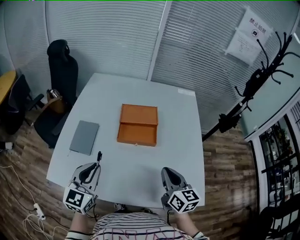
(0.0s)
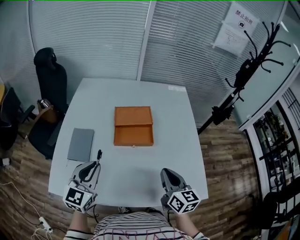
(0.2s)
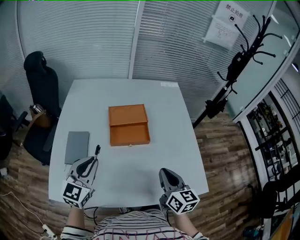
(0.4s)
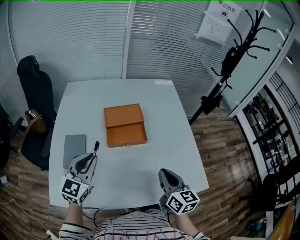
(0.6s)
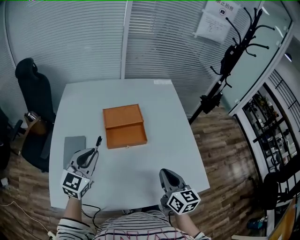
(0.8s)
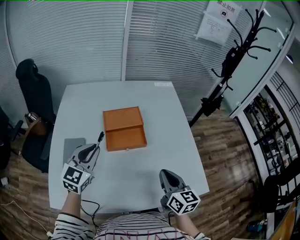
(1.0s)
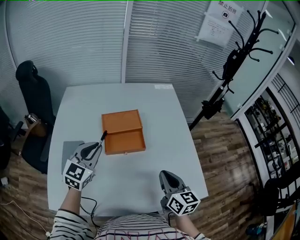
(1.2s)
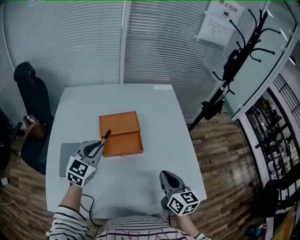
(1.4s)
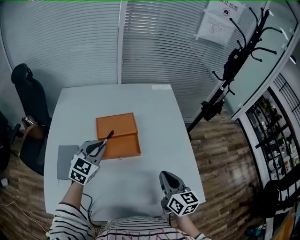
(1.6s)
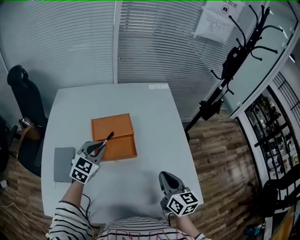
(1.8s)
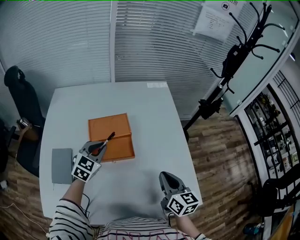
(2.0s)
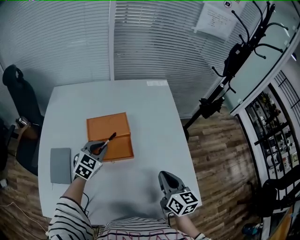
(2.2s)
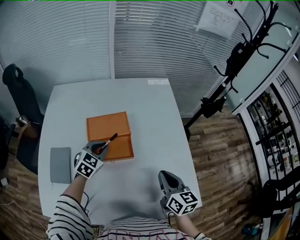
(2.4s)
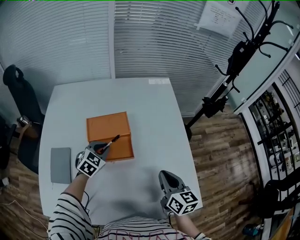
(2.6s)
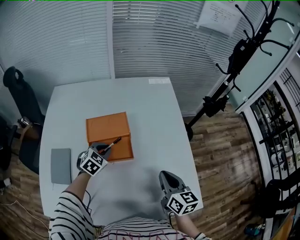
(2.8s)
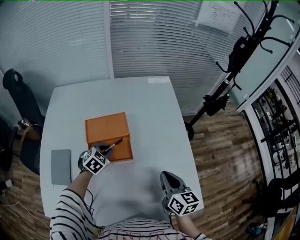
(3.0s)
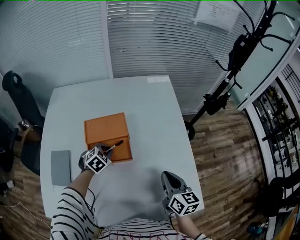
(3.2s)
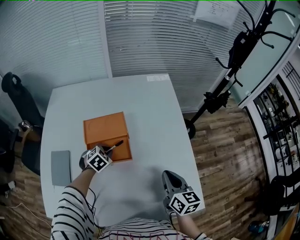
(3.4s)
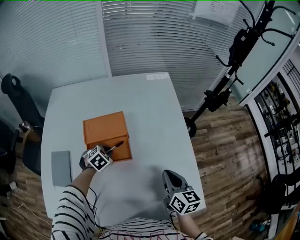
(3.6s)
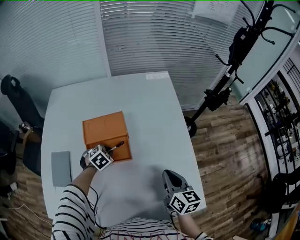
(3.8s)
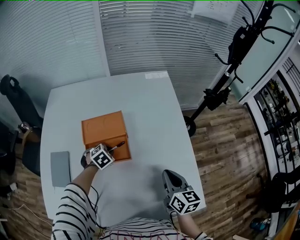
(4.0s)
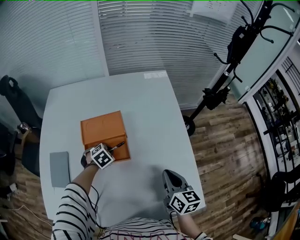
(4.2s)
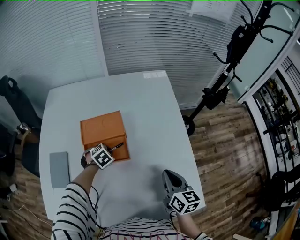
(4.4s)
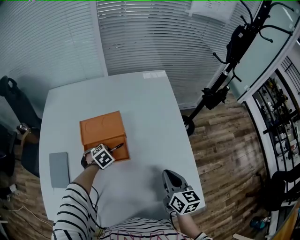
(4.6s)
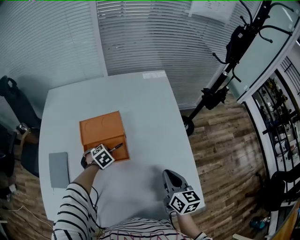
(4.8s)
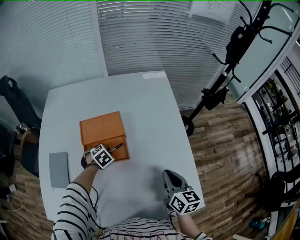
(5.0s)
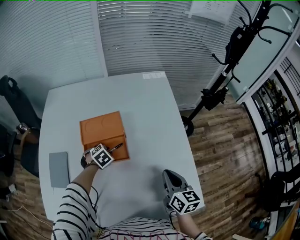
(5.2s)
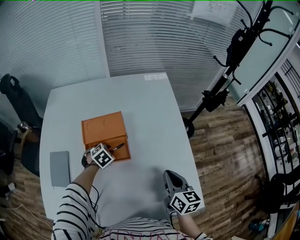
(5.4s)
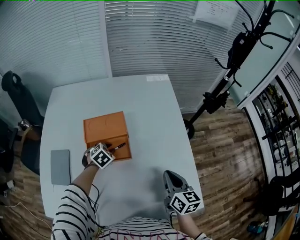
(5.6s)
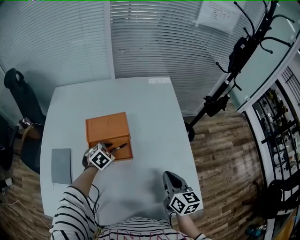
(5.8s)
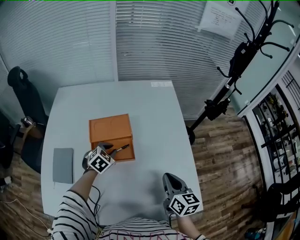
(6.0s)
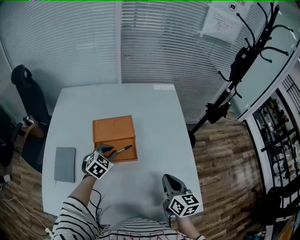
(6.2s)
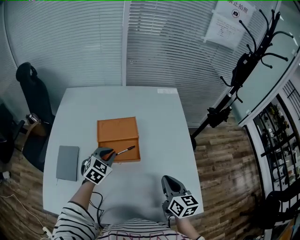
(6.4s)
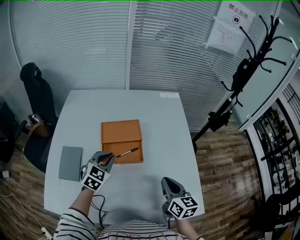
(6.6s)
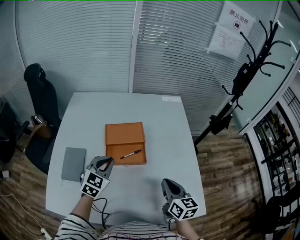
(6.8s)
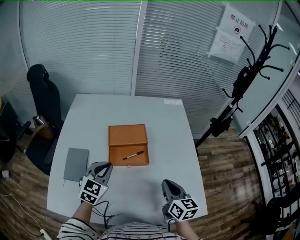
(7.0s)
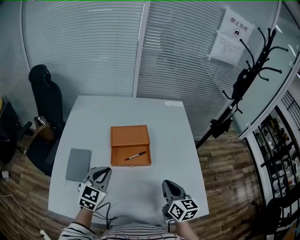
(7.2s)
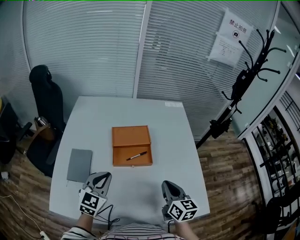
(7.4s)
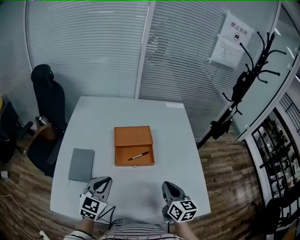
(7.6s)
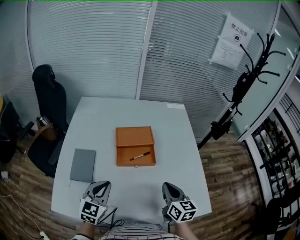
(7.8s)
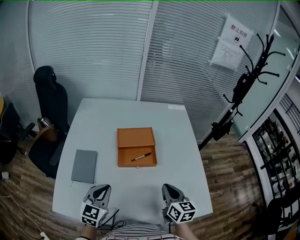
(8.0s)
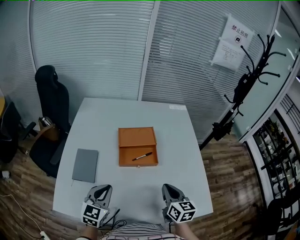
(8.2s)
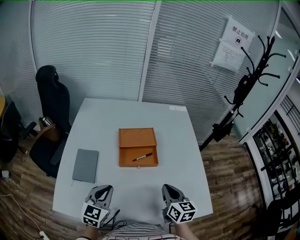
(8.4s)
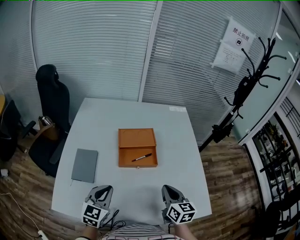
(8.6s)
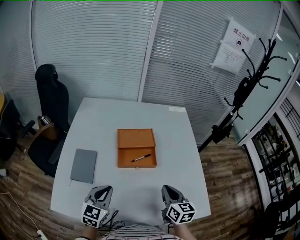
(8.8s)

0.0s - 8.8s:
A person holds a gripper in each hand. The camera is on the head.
0.0s - 1.4s: The left gripper heads forward, covering roughly 20 cm, and rotates approximately 20 degrees.
1.4s - 3.0s: The left gripper goes approximately 20 cm downward, forward and to the right, and angles its fingers downward, by roughly 30 degrees, while the right gripper goes roughly 10 cm forward and to the right.
3.0s - 4.4s: The left gripper is displaced downward by approximately 5 cm.
4.4s - 5.8s: The left gripper is displaced upward by some 5 cm.
5.8s - 7.4s: The right gripper shifts approximately 15 cm to the left and backward, while the left gripper is displaced backward, upward and to the left by about 30 cm, and tips its fingers upward by approximately 40 degrees.
7.4s - 8.8s: The left gripper moves backward, some 5 cm.

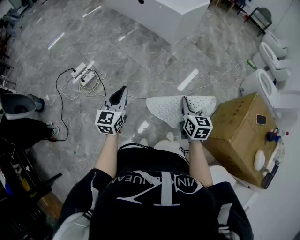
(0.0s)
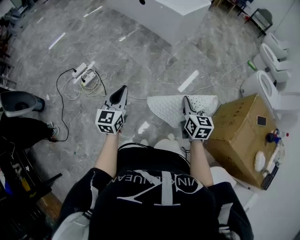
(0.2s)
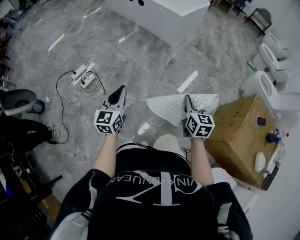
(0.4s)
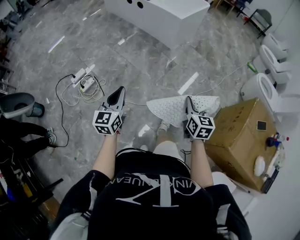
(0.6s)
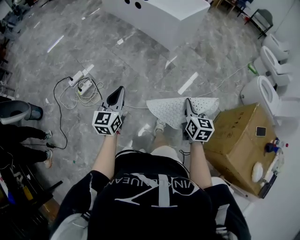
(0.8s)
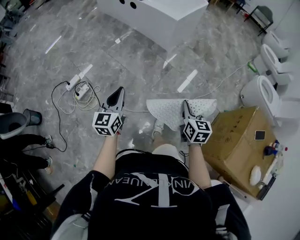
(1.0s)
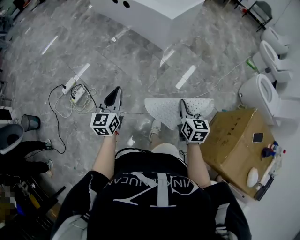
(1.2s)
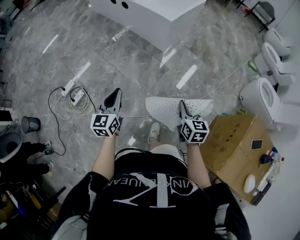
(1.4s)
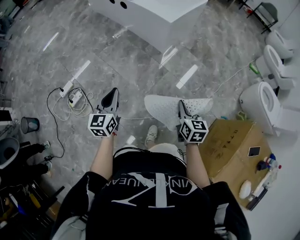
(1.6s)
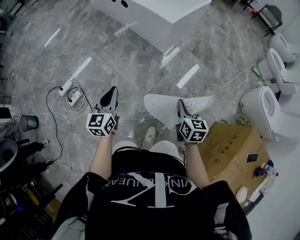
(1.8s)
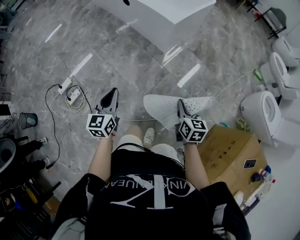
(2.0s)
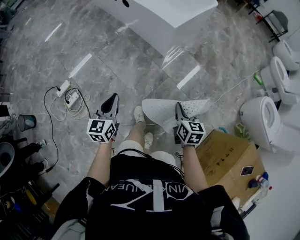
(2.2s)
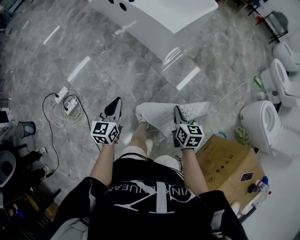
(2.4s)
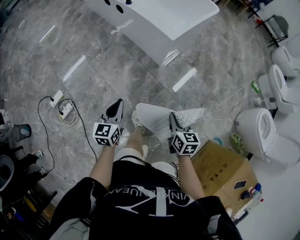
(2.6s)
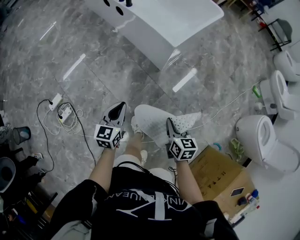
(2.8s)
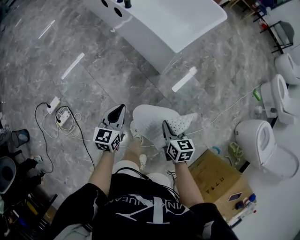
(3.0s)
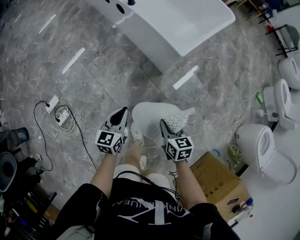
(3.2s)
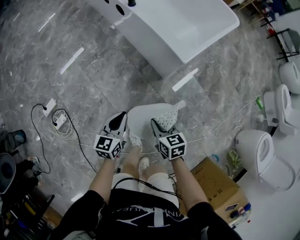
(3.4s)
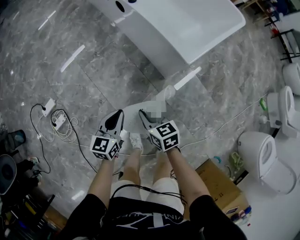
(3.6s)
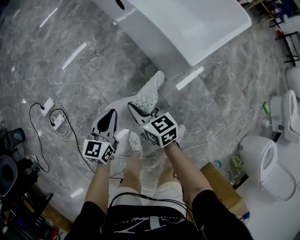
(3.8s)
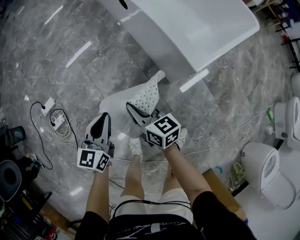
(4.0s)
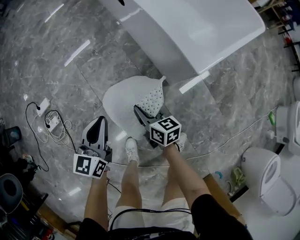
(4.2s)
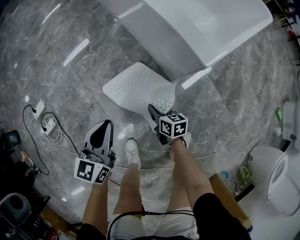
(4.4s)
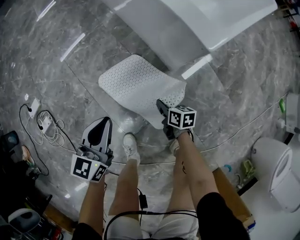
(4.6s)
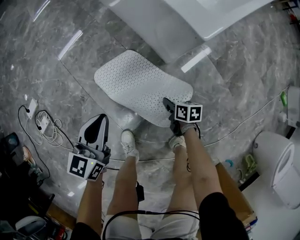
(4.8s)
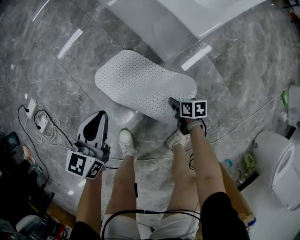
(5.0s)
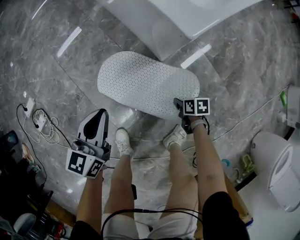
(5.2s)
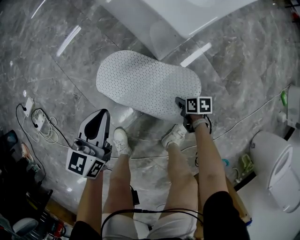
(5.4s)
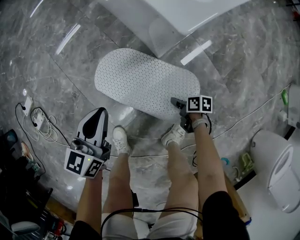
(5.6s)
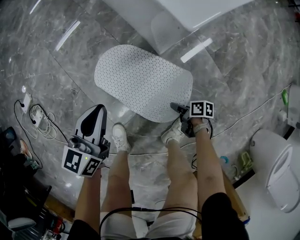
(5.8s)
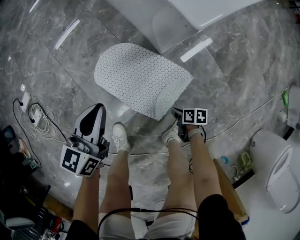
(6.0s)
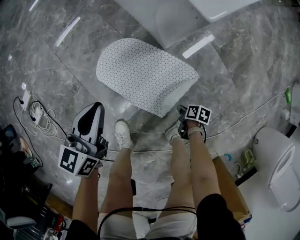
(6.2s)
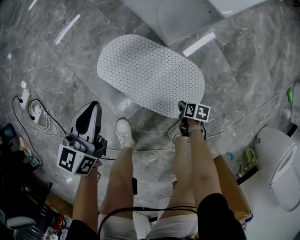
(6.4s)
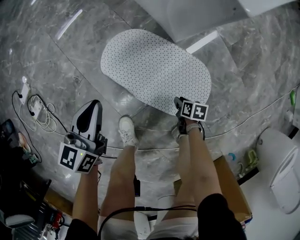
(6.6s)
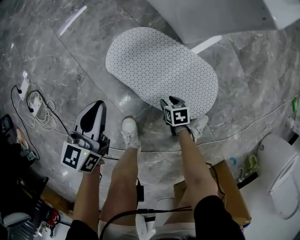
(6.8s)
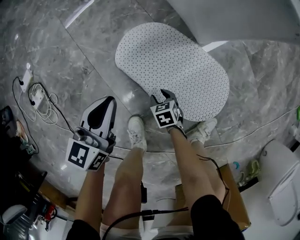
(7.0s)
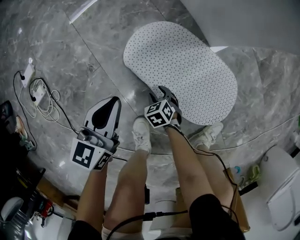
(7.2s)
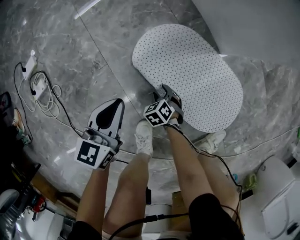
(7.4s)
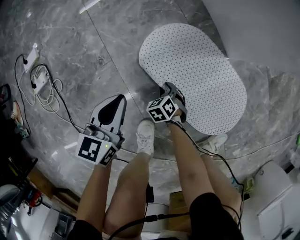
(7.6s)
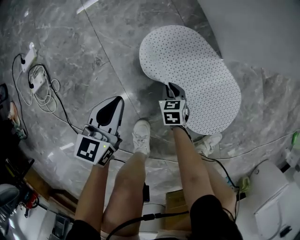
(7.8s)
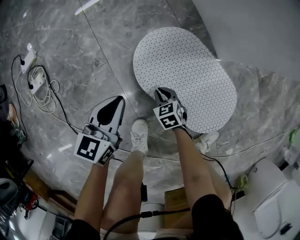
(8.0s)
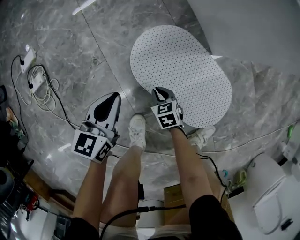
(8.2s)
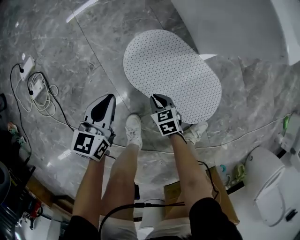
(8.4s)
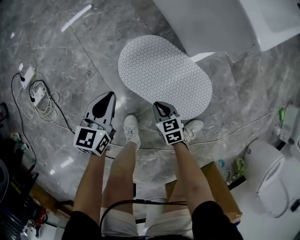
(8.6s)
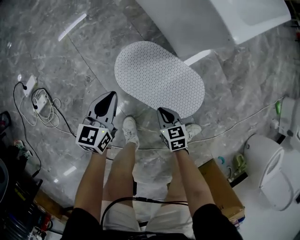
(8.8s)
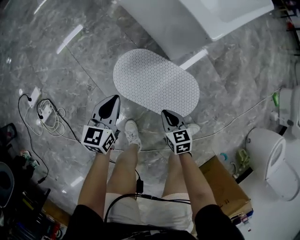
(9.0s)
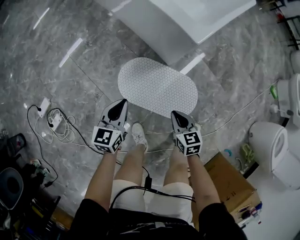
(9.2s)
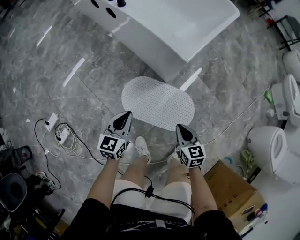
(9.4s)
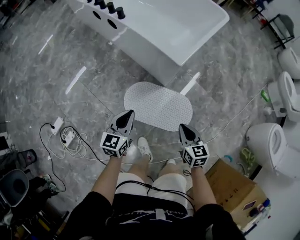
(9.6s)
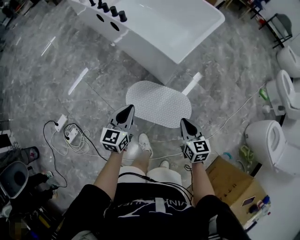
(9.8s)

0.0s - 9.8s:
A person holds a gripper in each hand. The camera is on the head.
0.0s - 1.4s: The two grippers go roughly 25 cm forward.
1.4s - 2.8s: The two grippers go about 30 cm forward.
2.8s - 4.2s: The left gripper moves some 25 cm, while the right gripper changes place by approximately 40 cm, and turns by roughly 30 degrees.
4.2s - 5.6s: The right gripper is displaced downward, to the right and backward by about 40 cm, and swivels some 50 degrees; the left gripper moves downward and to the right, approximately 20 cm.
5.6s - 7.0s: The right gripper is displaced to the left and downward by about 30 cm, rotates around the line of its fingers by about 50 degrees, counterclockwise from behind, and opens its fingers. The left gripper heads to the left and downward, covering some 20 cm.
7.0s - 8.4s: The left gripper moves to the left, roughly 5 cm. Meanwhile the right gripper goes some 10 cm upward, and closes its fingers.
8.4s - 9.8s: The two grippers go about 50 cm upward. The left gripper rotates some 30 degrees. The right gripper swivels approximately 50 degrees.

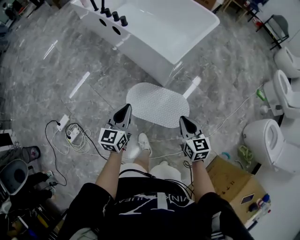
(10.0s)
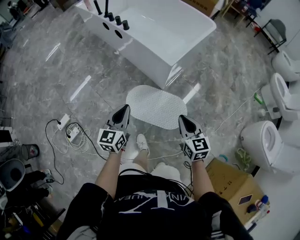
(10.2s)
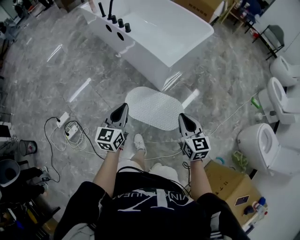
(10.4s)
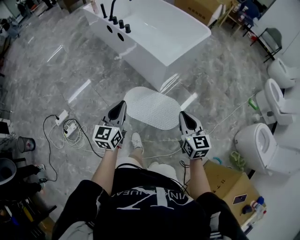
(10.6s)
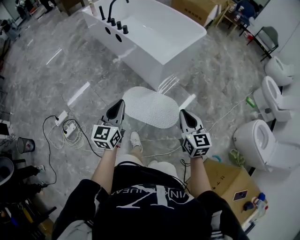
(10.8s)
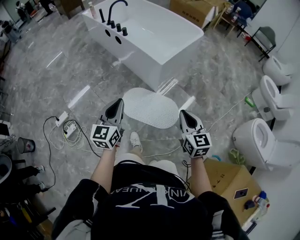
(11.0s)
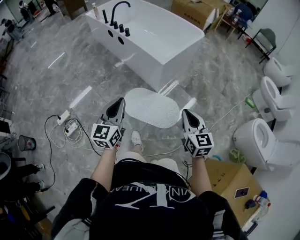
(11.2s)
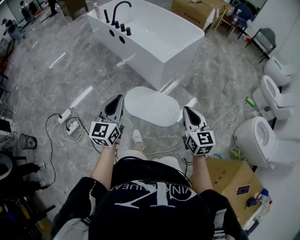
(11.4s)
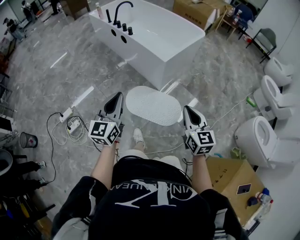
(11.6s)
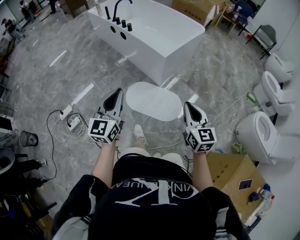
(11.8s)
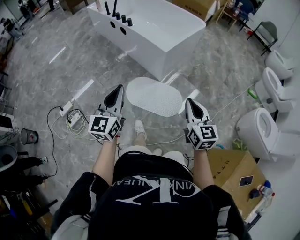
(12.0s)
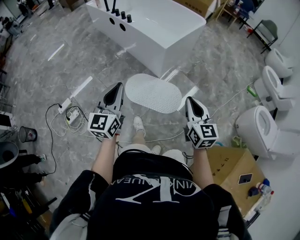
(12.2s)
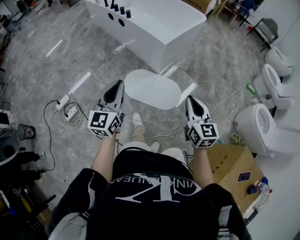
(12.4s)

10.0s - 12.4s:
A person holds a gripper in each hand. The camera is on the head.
10.0s - 11.2s: The left gripper is displaced backward and upward by roughly 25 cm, while the right gripper travels upward and backward by roughly 20 cm.
11.2s - 12.4s: The left gripper changes place by about 5 cm. Meanwhile the right gripper shifts about 5 cm backward.

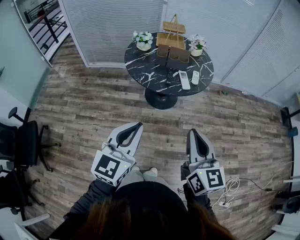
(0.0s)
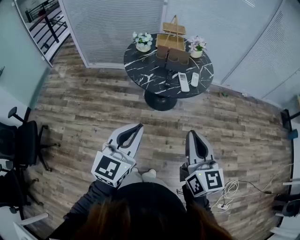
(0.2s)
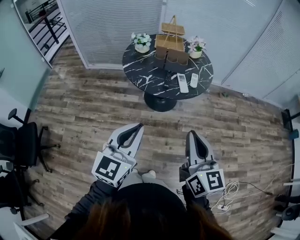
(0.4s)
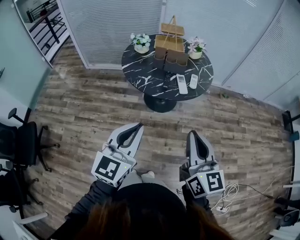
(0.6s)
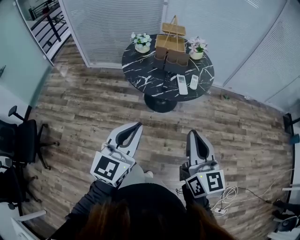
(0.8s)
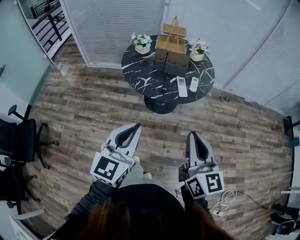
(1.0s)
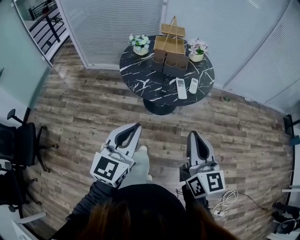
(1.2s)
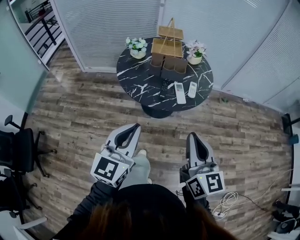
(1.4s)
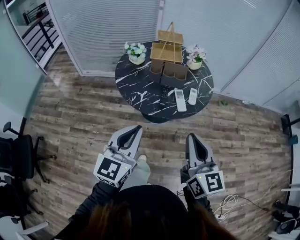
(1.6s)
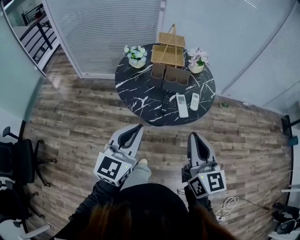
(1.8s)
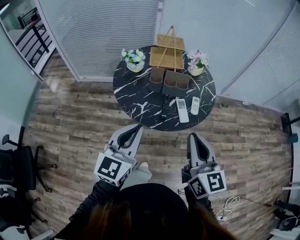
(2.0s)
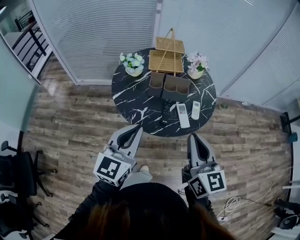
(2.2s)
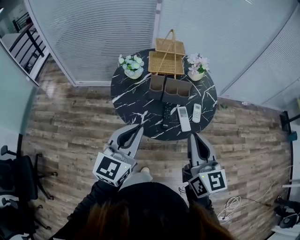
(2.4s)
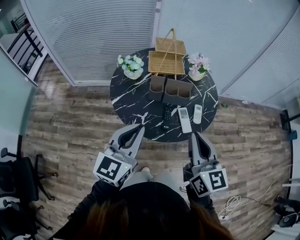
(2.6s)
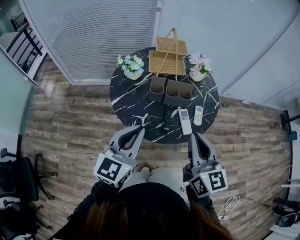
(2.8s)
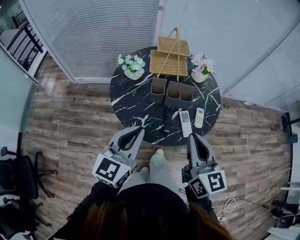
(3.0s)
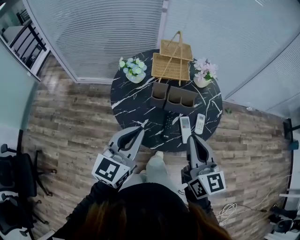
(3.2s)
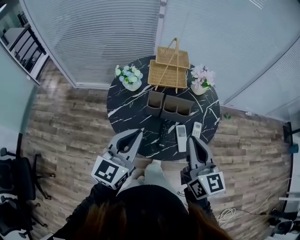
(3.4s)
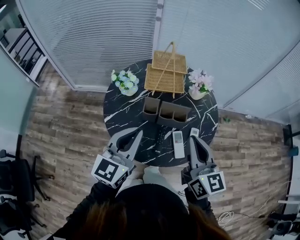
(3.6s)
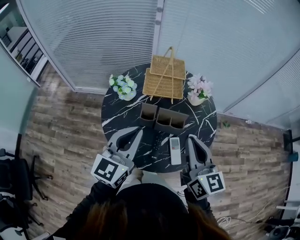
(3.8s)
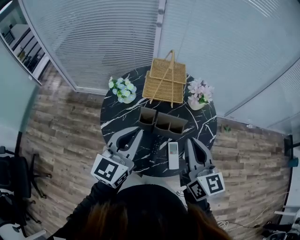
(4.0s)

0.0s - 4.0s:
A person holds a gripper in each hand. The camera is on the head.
0.0s - 1.4s: The two grippers go about 10 cm forward.
1.4s - 2.6s: Both grippers travel together forward, roughly 20 cm.
2.6s - 4.0s: Both grippers travel together forward, approximately 20 cm.
